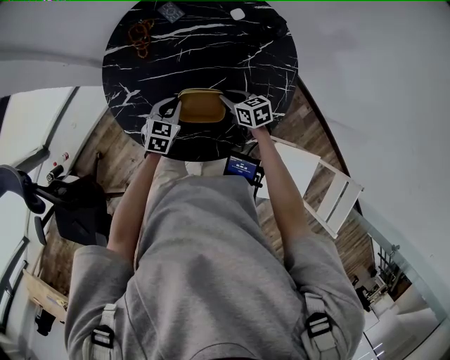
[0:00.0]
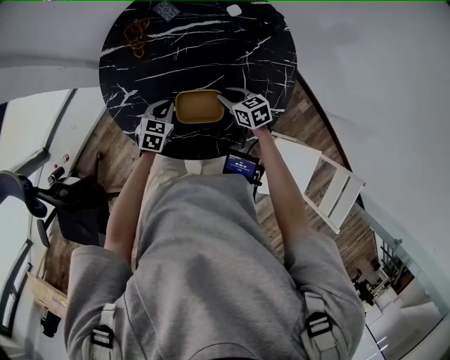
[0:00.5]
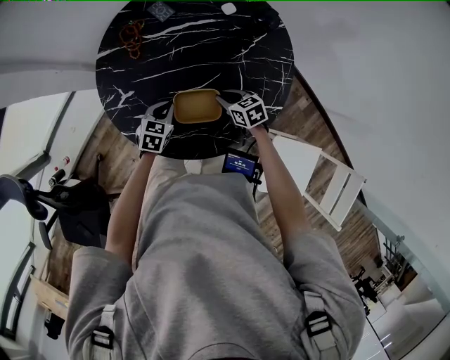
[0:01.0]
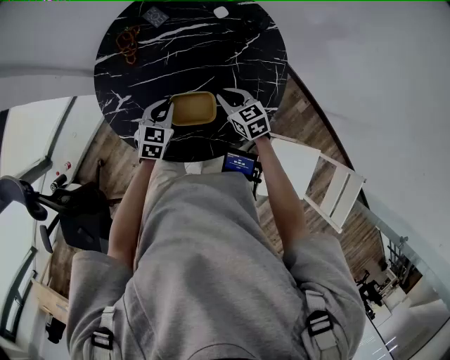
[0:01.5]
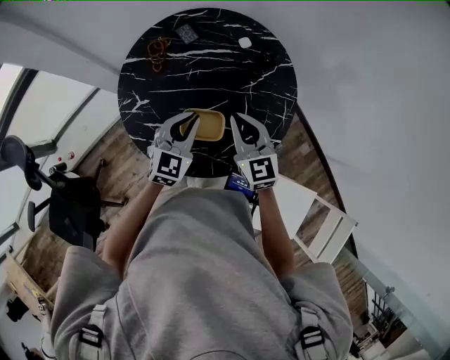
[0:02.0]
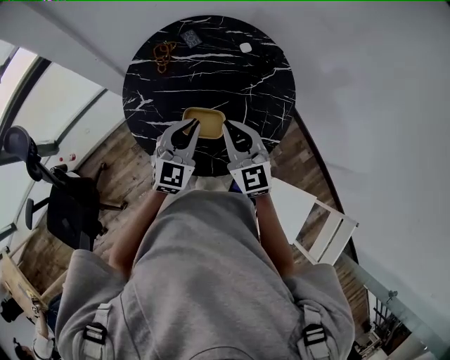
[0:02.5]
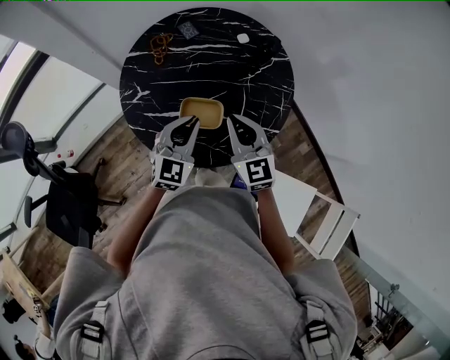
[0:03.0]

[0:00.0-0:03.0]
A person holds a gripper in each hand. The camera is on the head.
0:00.0 to 0:01.5: The right gripper is displaced upward by roughly 5 cm.
0:01.5 to 0:03.0: The grippers both shift upward and backward by about 20 cm. The right gripper rotates some 30 degrees, while the left gripper changes its angle by approximately 30 degrees.

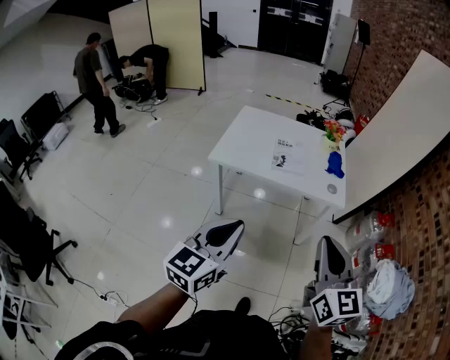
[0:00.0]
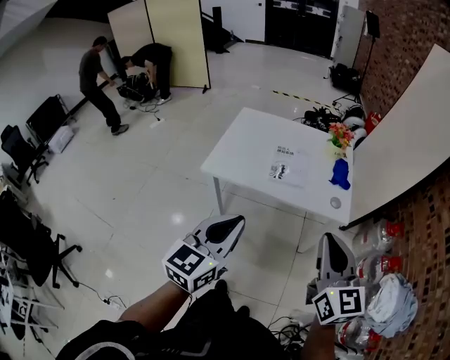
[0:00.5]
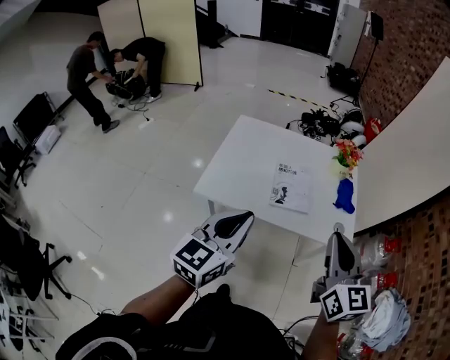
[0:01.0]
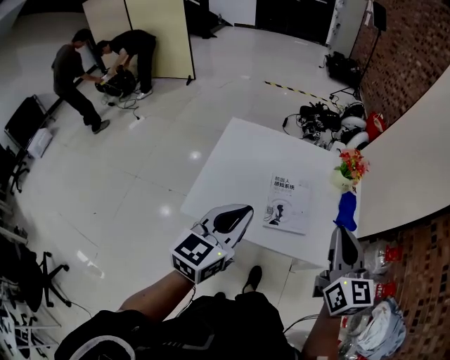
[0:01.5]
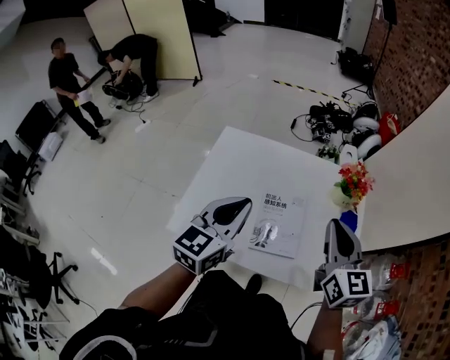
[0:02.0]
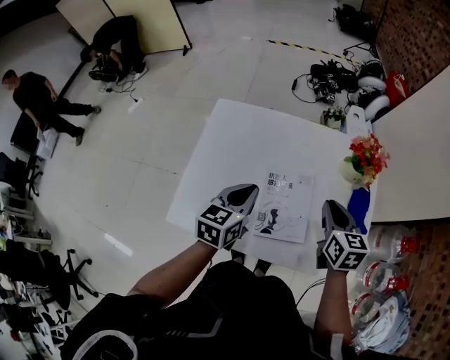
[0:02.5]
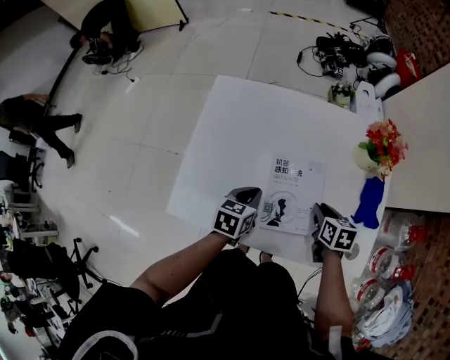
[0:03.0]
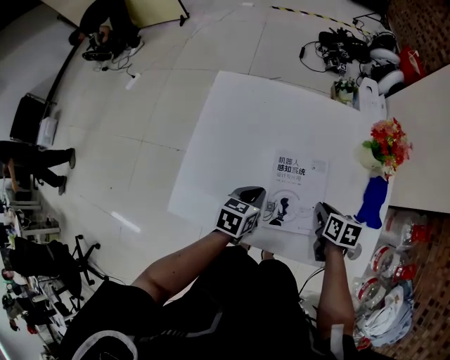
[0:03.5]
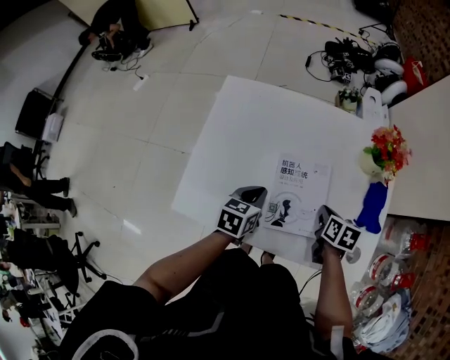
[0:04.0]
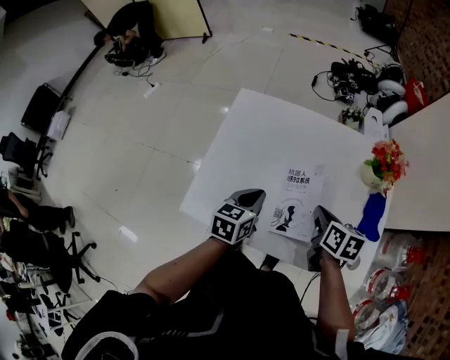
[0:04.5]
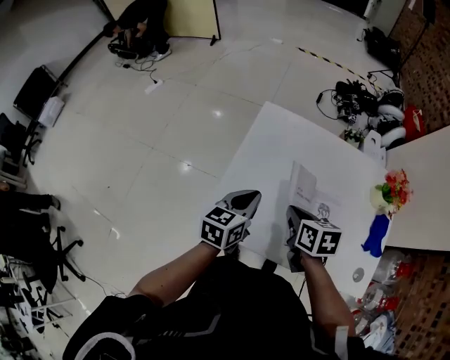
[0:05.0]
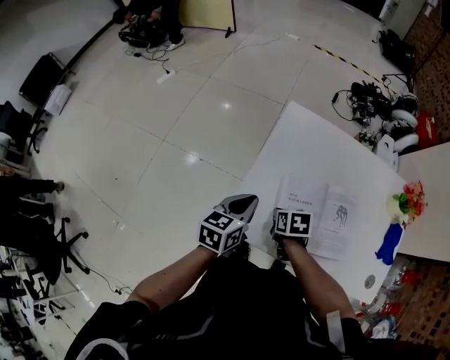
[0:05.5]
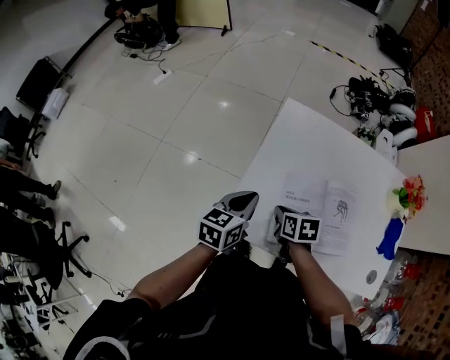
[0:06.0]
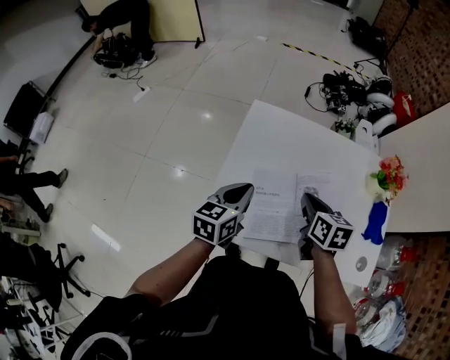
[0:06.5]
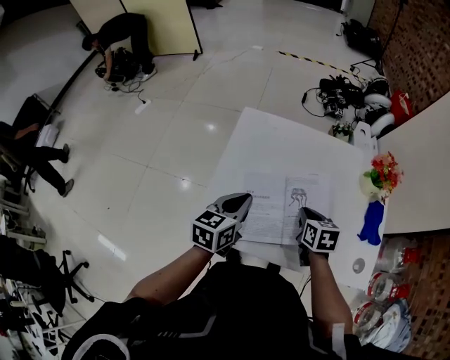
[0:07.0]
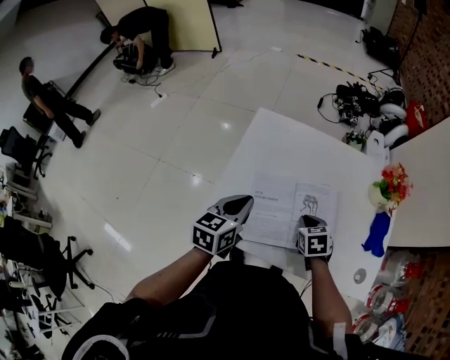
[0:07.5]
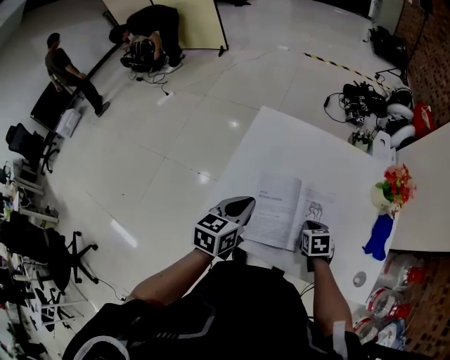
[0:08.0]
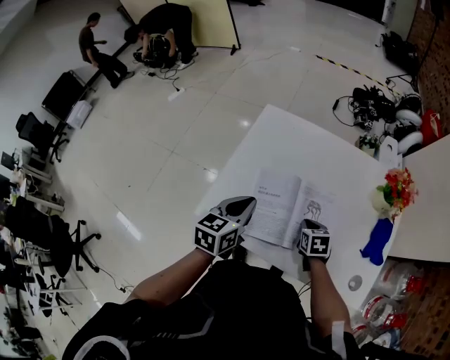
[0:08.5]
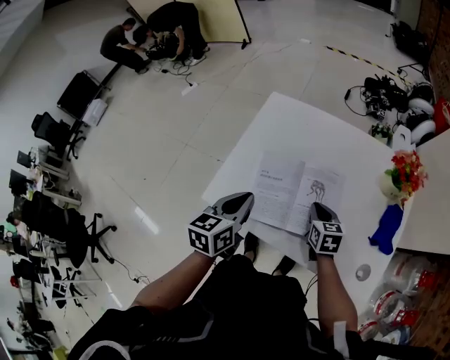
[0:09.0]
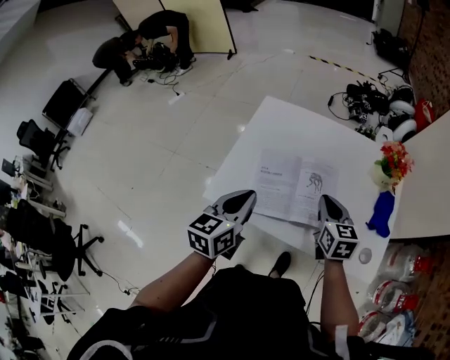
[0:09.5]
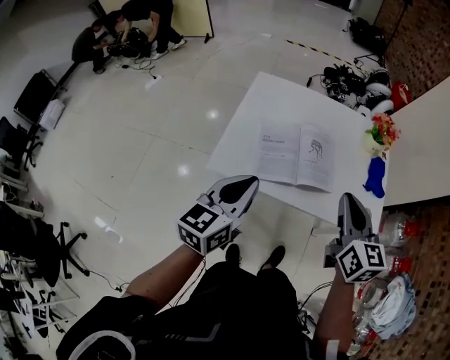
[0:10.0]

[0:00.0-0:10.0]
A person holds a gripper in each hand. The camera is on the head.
0:00.0 to 0:02.0: The pair of grippers is taken forward, roughly 60 cm.
0:02.0 to 0:04.0: Both grippers travel together downward, approximately 30 cm. The left gripper angles its fingers downward, by some 30 degrees, while the right gripper tilts its fingers about 40 degrees downward.
0:04.0 to 0:06.0: The left gripper heads to the left, covering some 25 cm, while the right gripper is displaced to the left by about 40 cm, and turns by some 20 degrees.
0:06.0 to 0:08.0: The left gripper shifts roughly 10 cm to the right, while the right gripper moves to the right, roughly 25 cm, and swivels roughly 20 degrees.
0:08.0 to 0:10.0: The left gripper moves backward and upward, some 25 cm. The right gripper is displaced upward and backward by about 35 cm, and tilts its fingers roughly 50 degrees upward.

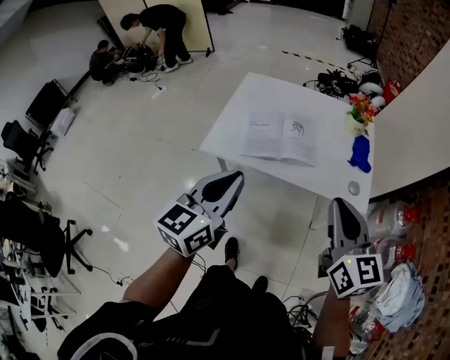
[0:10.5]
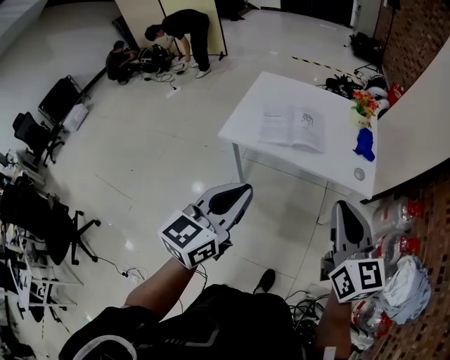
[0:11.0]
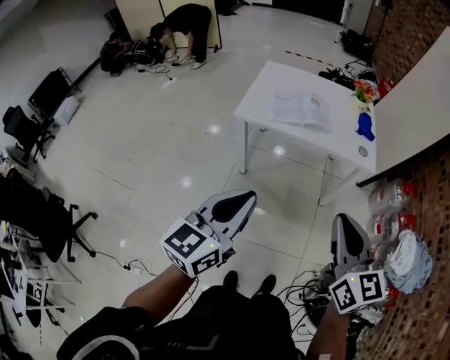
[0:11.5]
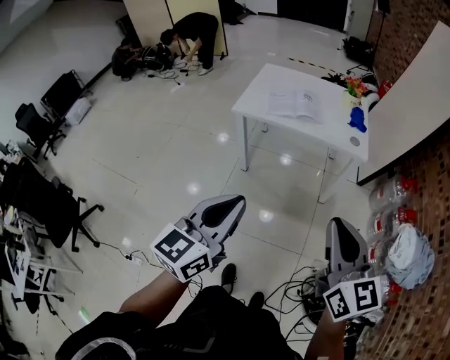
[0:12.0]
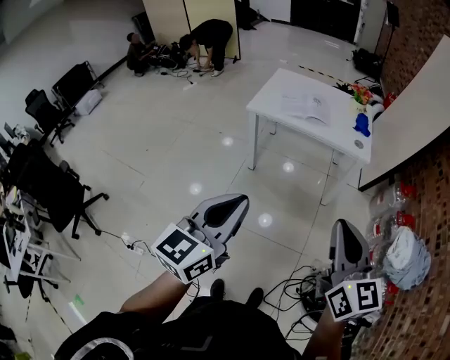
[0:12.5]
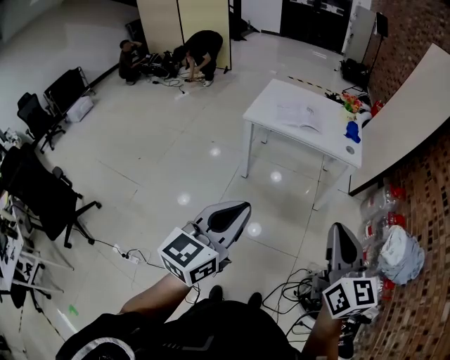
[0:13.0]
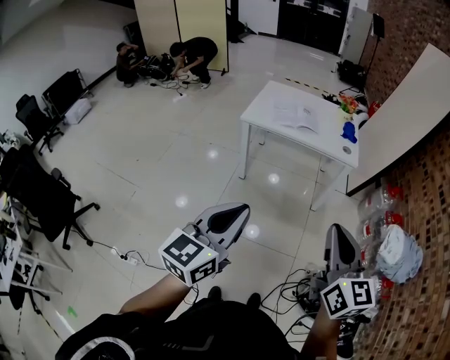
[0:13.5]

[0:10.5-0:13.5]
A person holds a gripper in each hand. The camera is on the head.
0:10.5 to 0:12.0: Both grippers are carried backward, roughly 40 cm.
0:12.0 to 0:13.5: Both grippers travel together backward, approximately 15 cm.

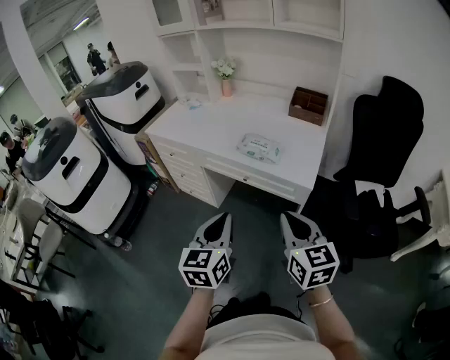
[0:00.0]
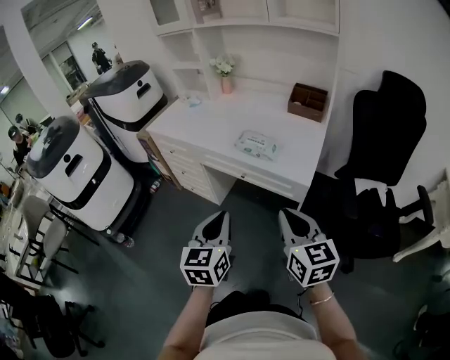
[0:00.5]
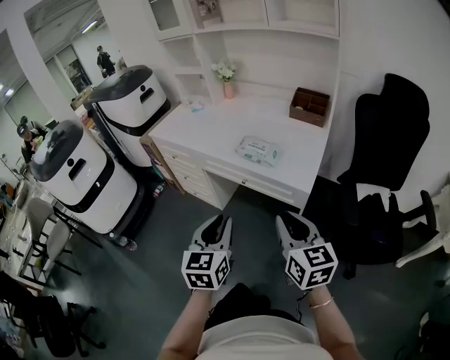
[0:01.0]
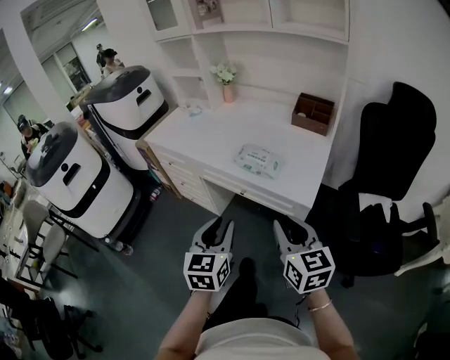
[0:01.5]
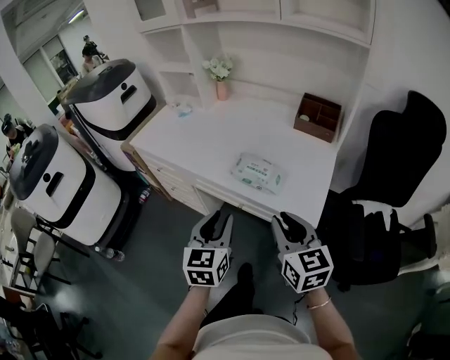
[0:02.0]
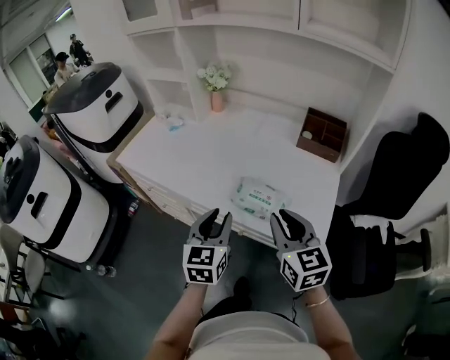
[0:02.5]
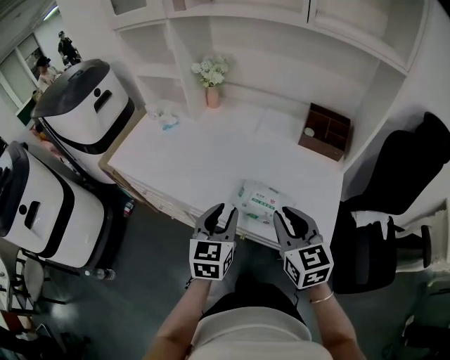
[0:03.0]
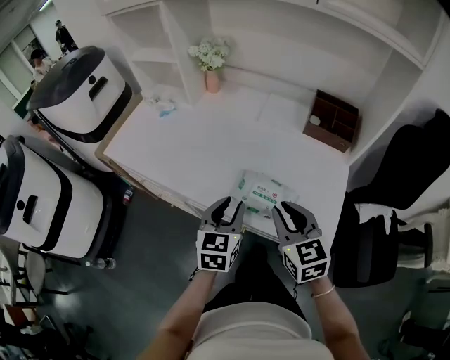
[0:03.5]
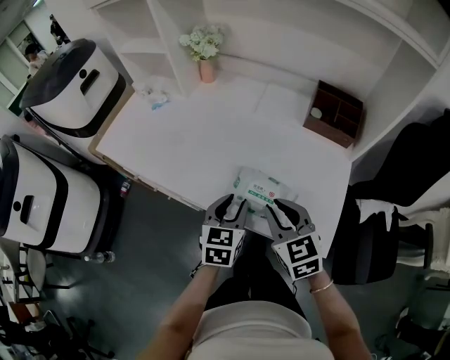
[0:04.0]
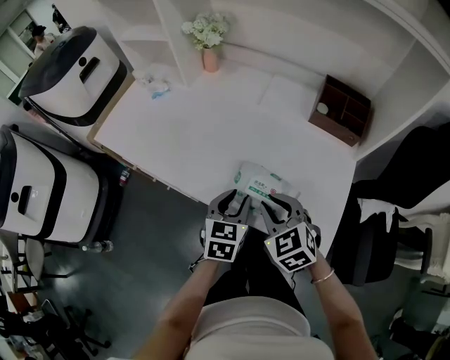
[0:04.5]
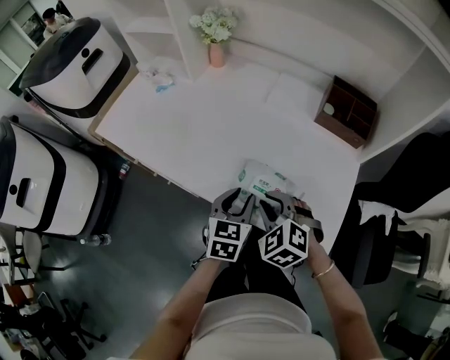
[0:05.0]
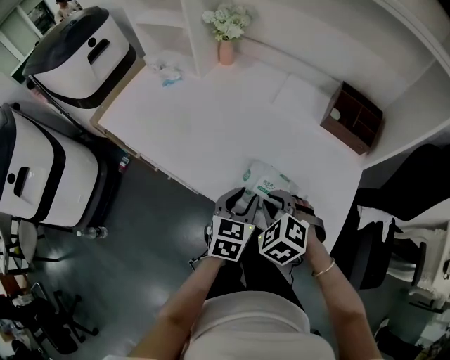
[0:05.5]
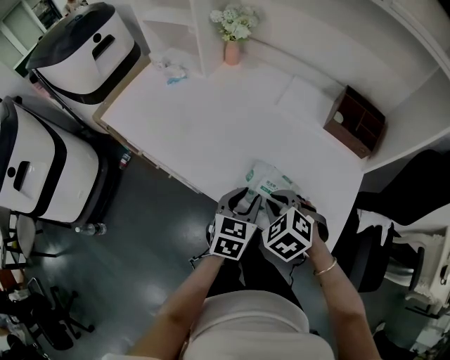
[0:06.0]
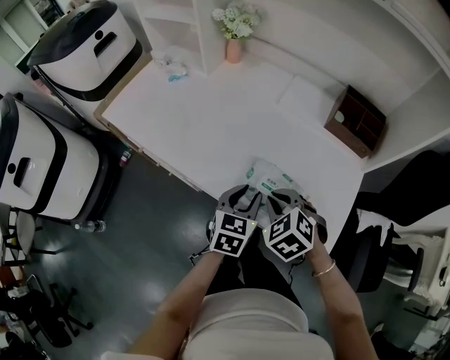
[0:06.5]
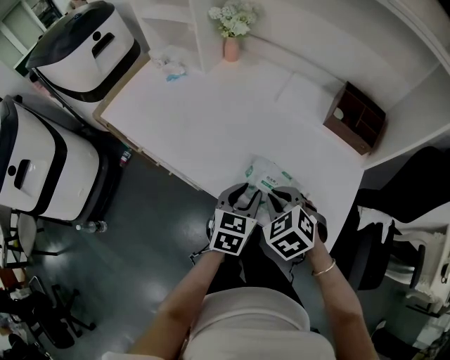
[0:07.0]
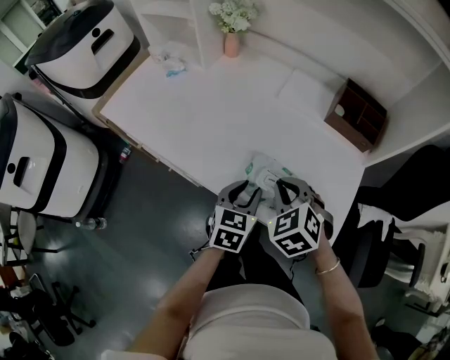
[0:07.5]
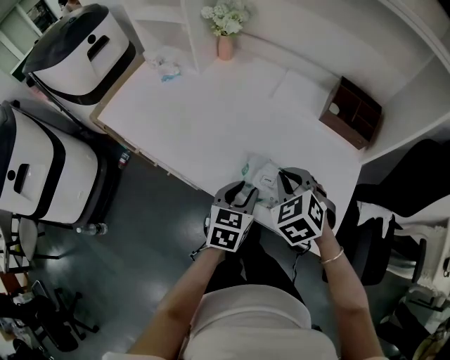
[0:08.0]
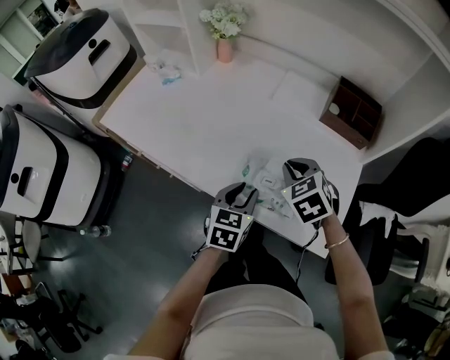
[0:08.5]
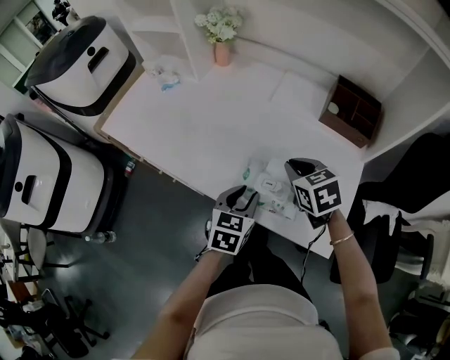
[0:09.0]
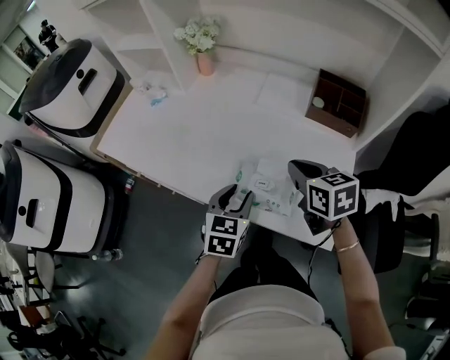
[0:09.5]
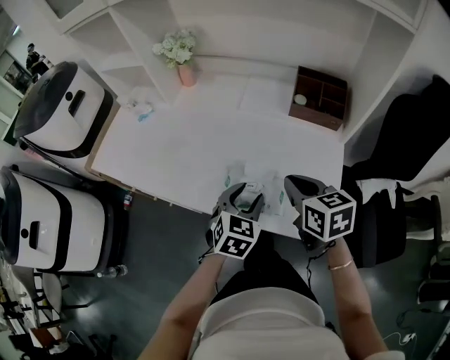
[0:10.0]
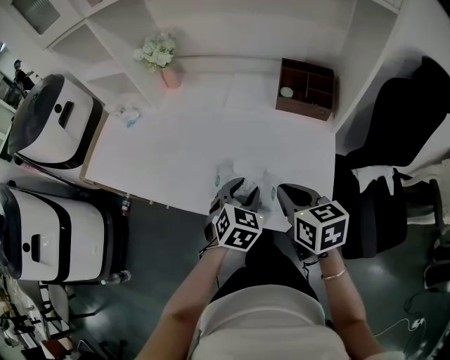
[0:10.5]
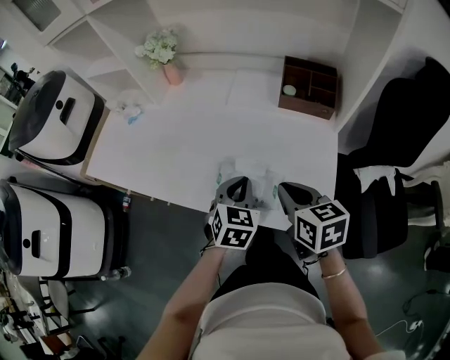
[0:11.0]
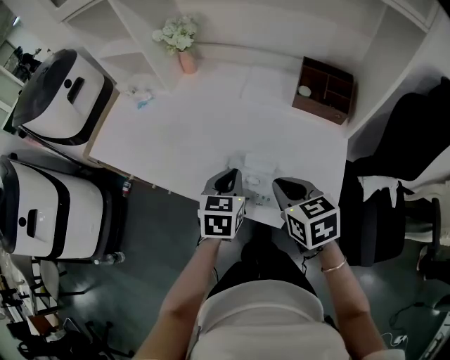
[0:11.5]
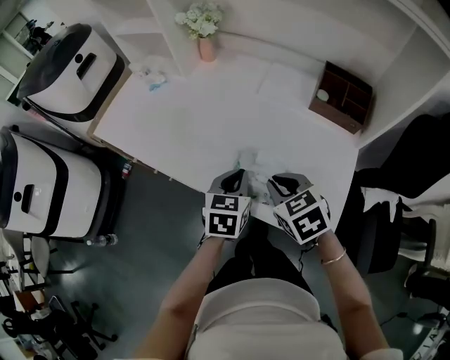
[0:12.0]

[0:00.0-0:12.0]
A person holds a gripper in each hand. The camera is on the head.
0:00.0 to 0:02.0: The grippers both shift forward by roughly 20 cm. The left gripper opens.
0:02.0 to 0:04.0: The left gripper moves forward and downward, about 20 cm. The right gripper heads forward, covering about 20 cm.
0:04.0 to 0:06.0: The right gripper moves downward, roughly 5 cm, and tilts its fingers about 30 degrees downward.
0:06.0 to 0:08.0: The right gripper moves roughly 5 cm.
0:08.0 to 0:10.0: The two grippers go some 5 cm to the right. The right gripper twists about 50 degrees clockwise, seen from behind. The left gripper turns by approximately 20 degrees.
0:10.0 to 0:12.0: The two grippers go some 5 cm to the left. The right gripper rotates roughly 30 degrees. The left gripper swivels about 30 degrees, and closes.
